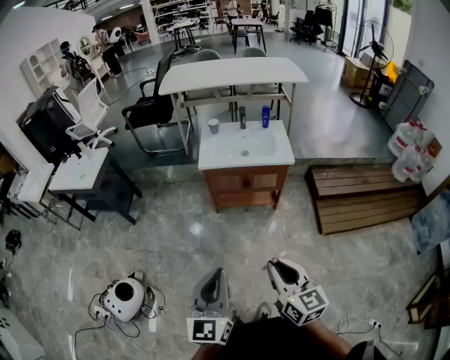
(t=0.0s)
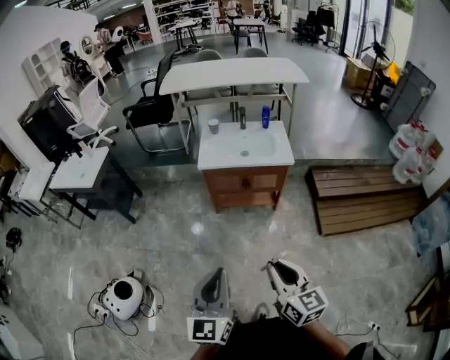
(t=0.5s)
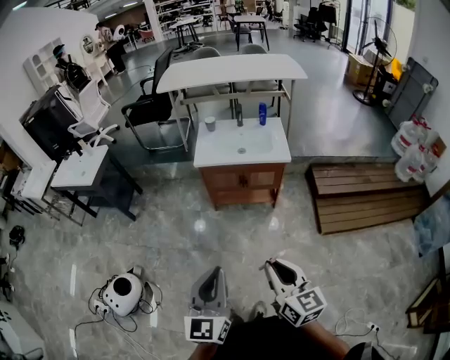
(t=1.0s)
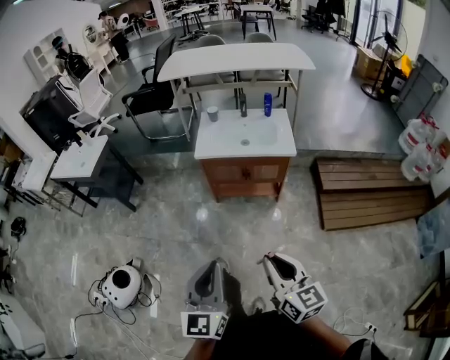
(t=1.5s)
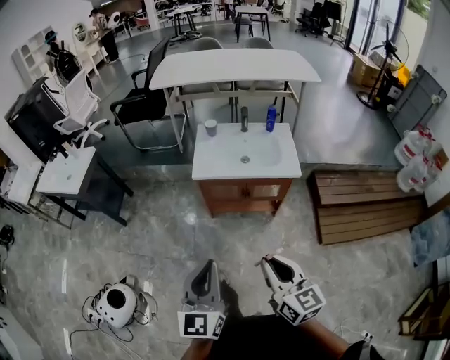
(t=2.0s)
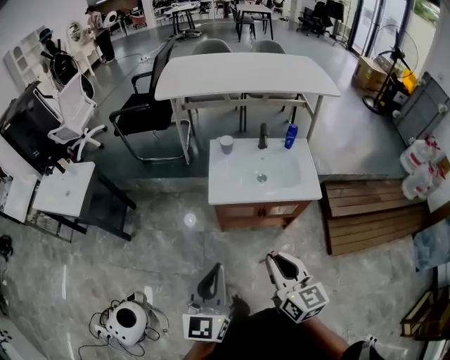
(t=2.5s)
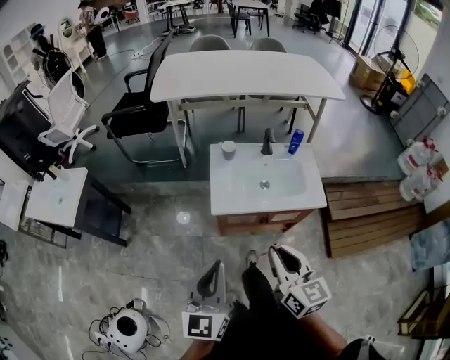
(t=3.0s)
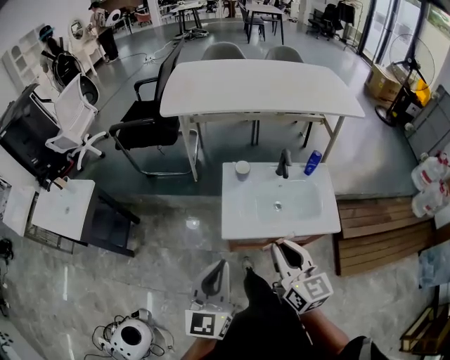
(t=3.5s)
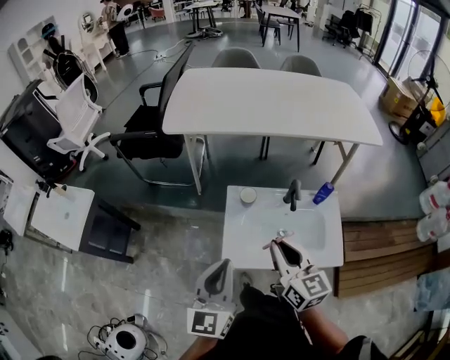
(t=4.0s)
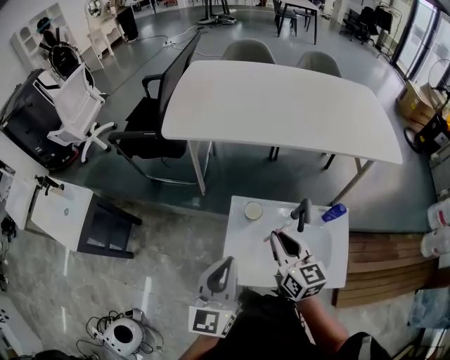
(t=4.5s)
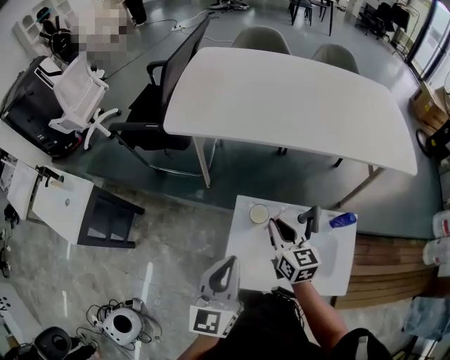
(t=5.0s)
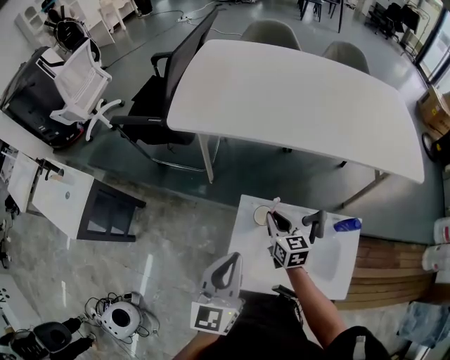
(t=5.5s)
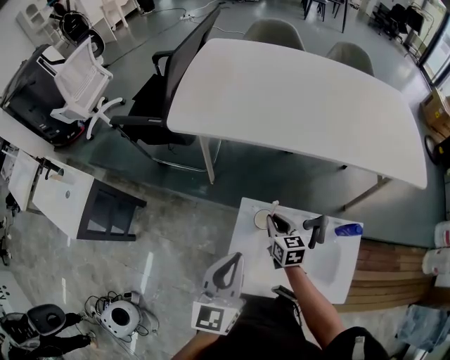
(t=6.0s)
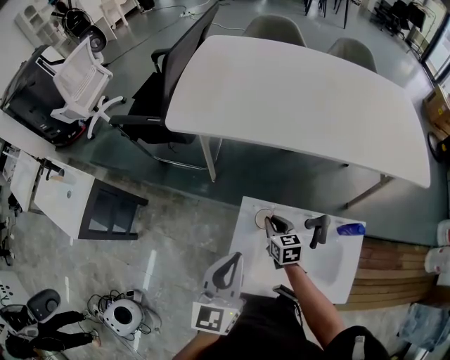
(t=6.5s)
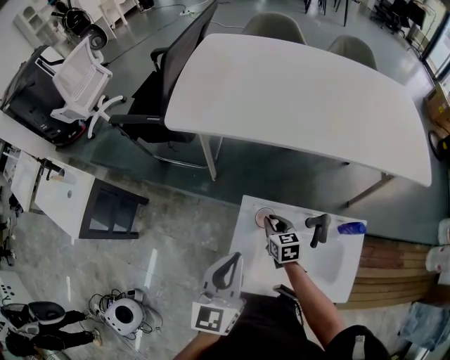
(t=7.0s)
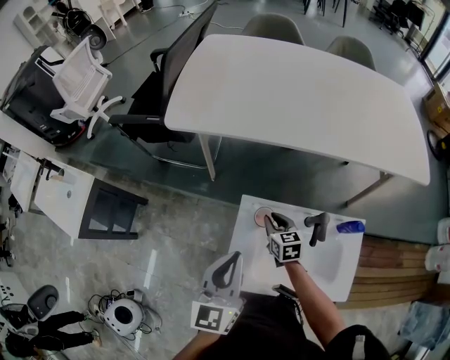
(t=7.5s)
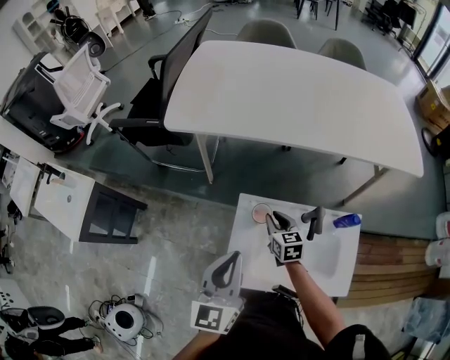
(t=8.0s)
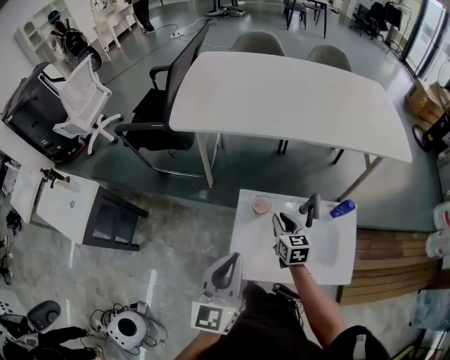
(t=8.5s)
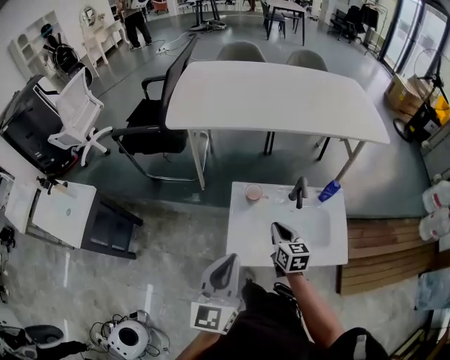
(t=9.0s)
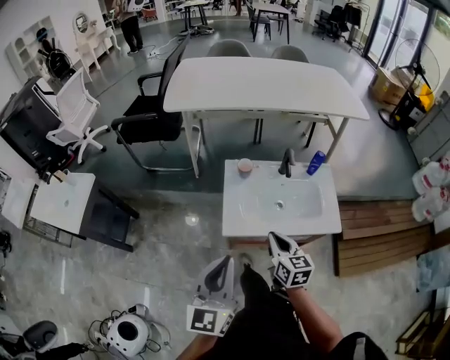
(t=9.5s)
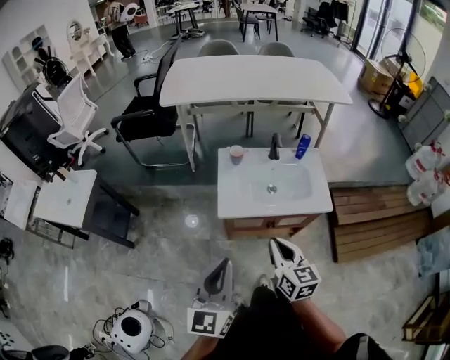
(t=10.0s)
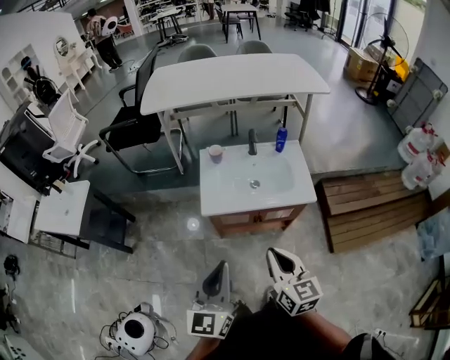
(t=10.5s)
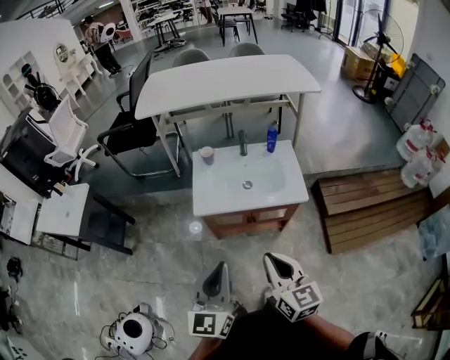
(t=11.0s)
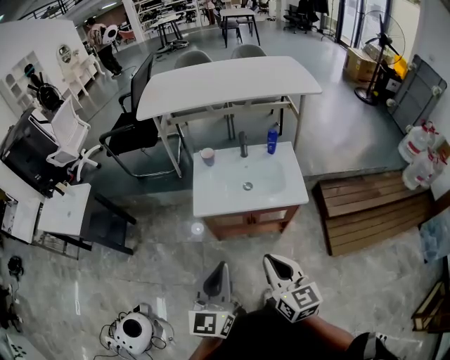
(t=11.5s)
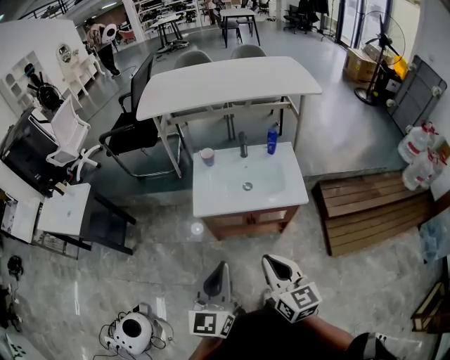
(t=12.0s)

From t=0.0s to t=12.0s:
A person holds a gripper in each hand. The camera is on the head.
From t=0.0s to t=2.0s: The grippers both shift forward by some 20 cm.
From t=2.0s to t=4.0s: The two grippers travel together, forward, about 50 cm.
From t=4.0s to t=6.0s: The left gripper shifts about 20 cm forward, while the right gripper moves forward and downward, about 35 cm, and changes its angle by roughly 20 degrees.
From t=6.0s to t=8.0s: The grippers stay close to where they were, moving slightly.
From t=8.0s to t=10.0s: Both grippers are carried backward, about 50 cm. The right gripper turns by about 20 degrees.
From t=10.0s to t=12.0s: The right gripper shifts approximately 15 cm backward, to the right and upward, while the left gripper travels to the right and backward by approximately 15 cm.

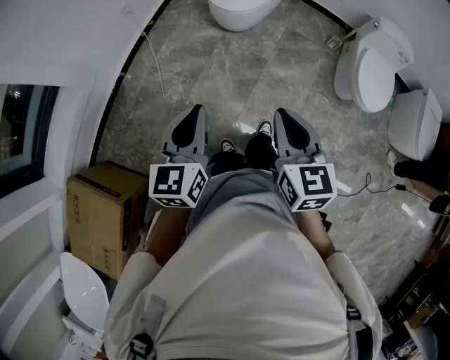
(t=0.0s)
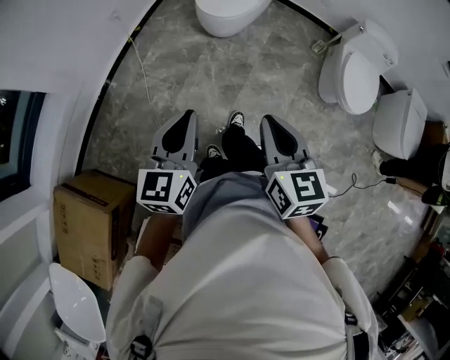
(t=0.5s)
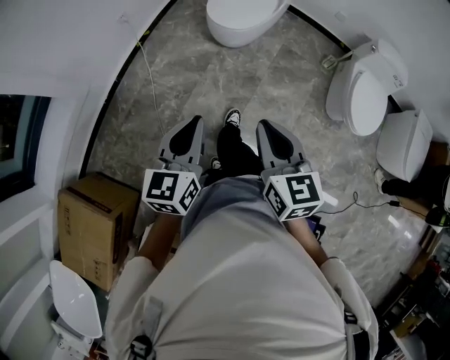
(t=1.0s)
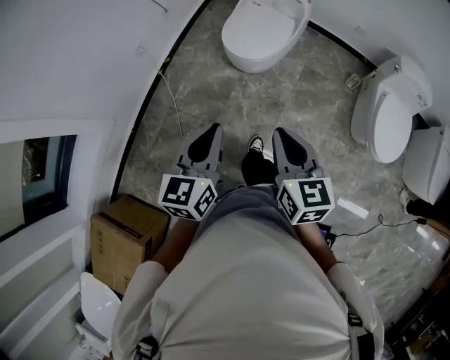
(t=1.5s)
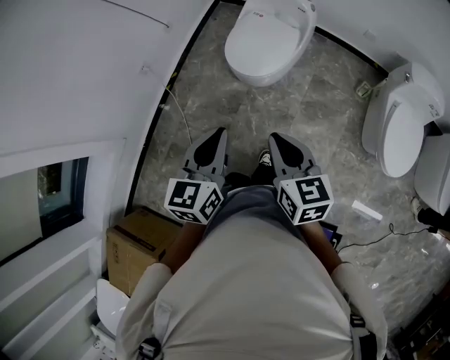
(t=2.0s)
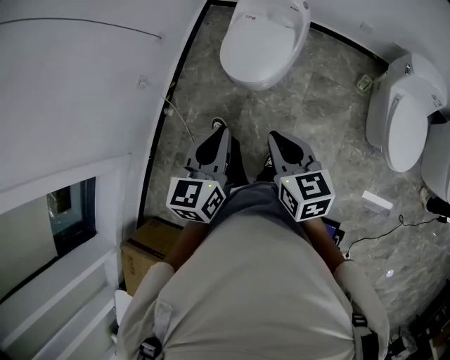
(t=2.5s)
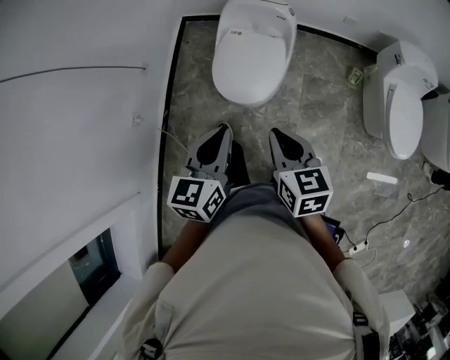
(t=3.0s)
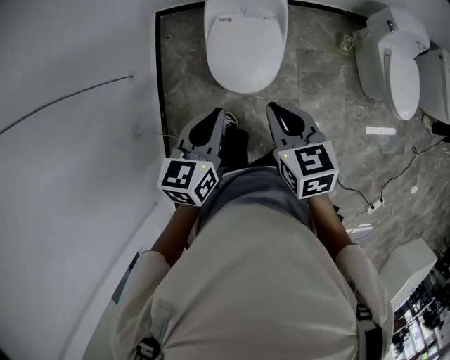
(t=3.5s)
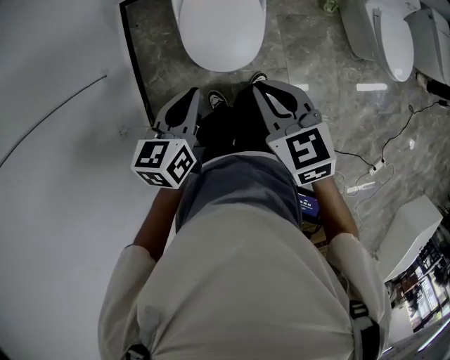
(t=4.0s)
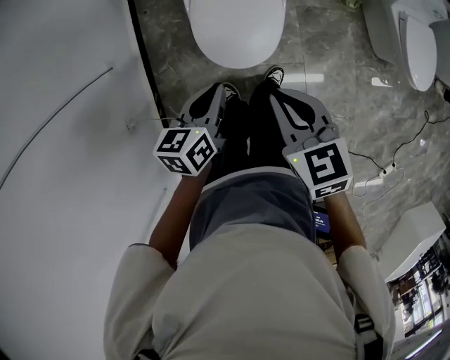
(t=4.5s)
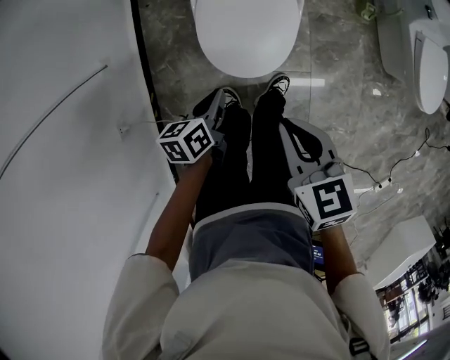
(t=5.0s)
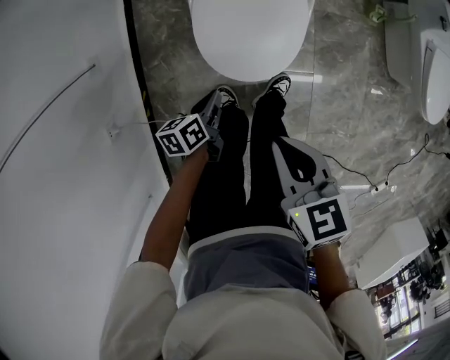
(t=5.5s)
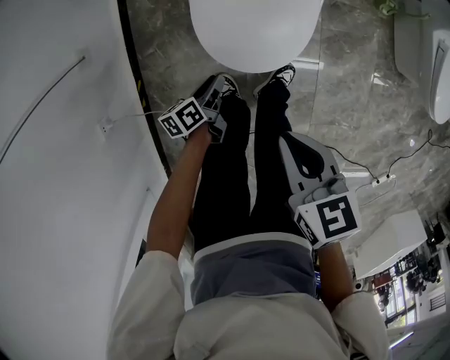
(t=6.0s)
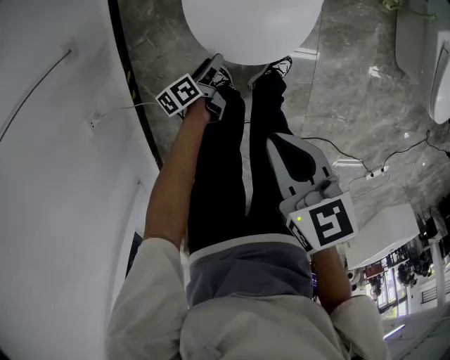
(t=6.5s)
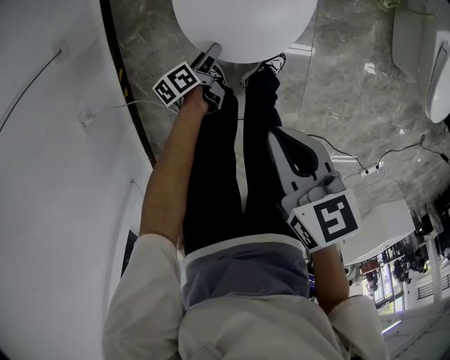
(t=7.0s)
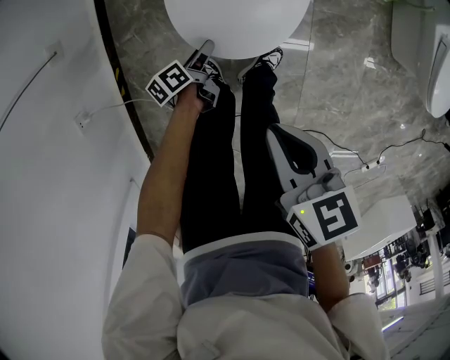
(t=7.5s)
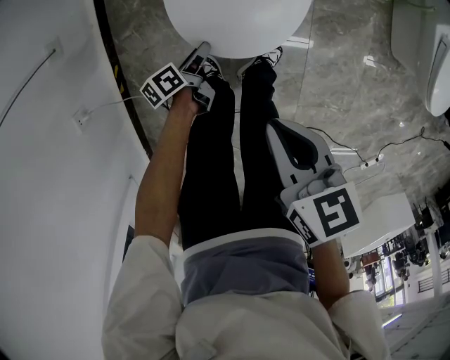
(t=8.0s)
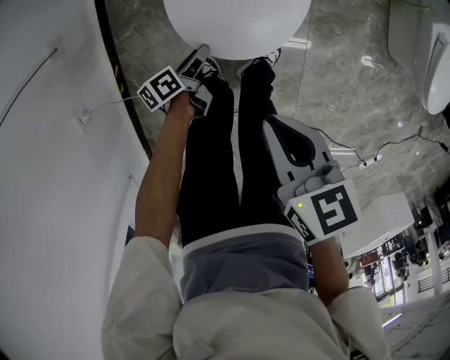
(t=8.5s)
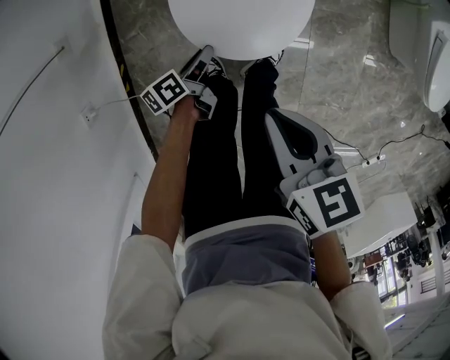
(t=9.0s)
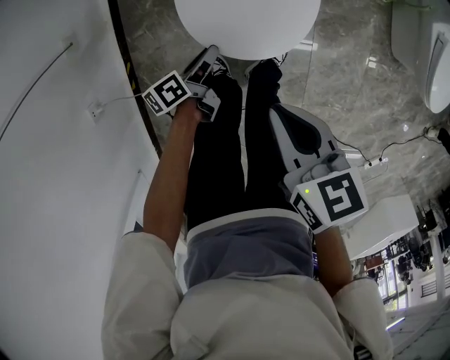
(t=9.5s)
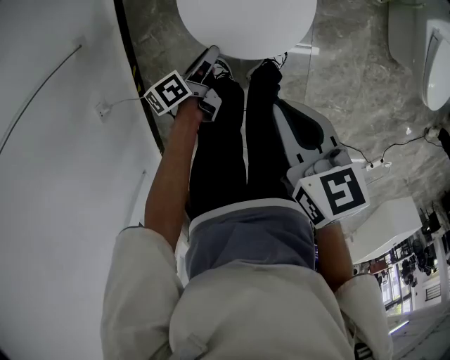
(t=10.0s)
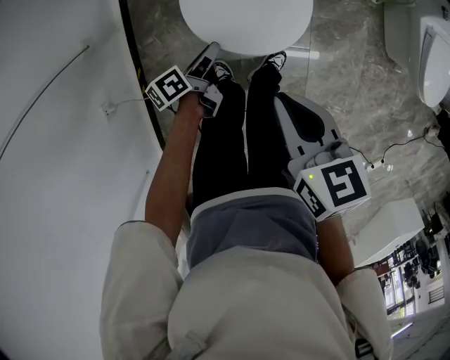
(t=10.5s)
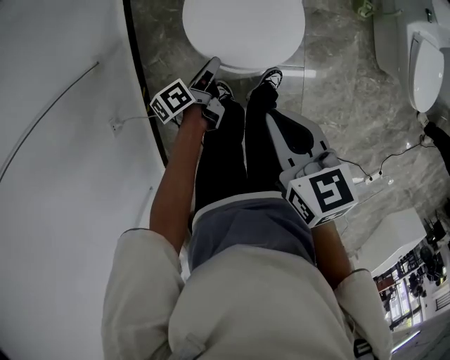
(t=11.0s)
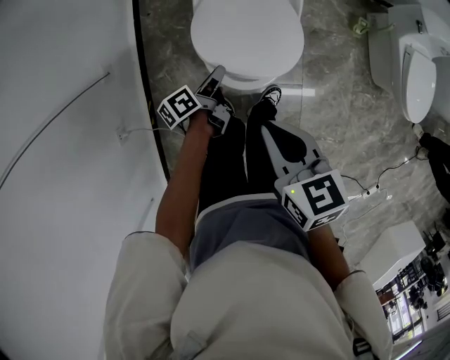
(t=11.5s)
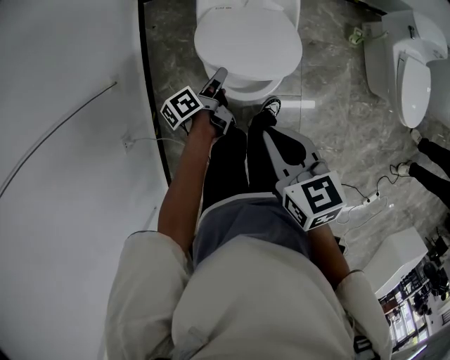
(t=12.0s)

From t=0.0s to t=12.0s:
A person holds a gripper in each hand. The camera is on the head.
From t=0.0s to t=2.0s: Both grippers travel together forward, approximately 35 cm.
From t=2.0s to t=4.0s: The right gripper moves some 35 cm, and changes its angle by some 20 degrees. Meanwhile the left gripper moves roughly 40 cm, and turns by about 40 degrees.
From t=4.0s to t=6.0s: The left gripper goes some 40 cm downward, rolls counterclockwise, seen from behind, by approximately 40 degrees, and opens its fingers, while the right gripper moves downward, some 20 cm, and rotates approximately 20 degrees.
From t=6.0s to t=8.0s: The left gripper heads downward, covering some 5 cm.
From t=8.0s to t=10.0s: The left gripper goes approximately 15 cm upward; the right gripper travels upward by roughly 5 cm.
From t=10.0s to t=12.0s: The left gripper goes some 15 cm upward and forward; the right gripper heads upward, covering about 10 cm.

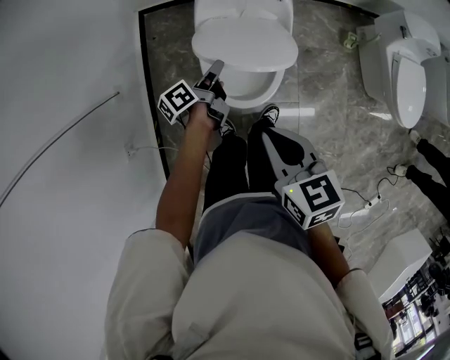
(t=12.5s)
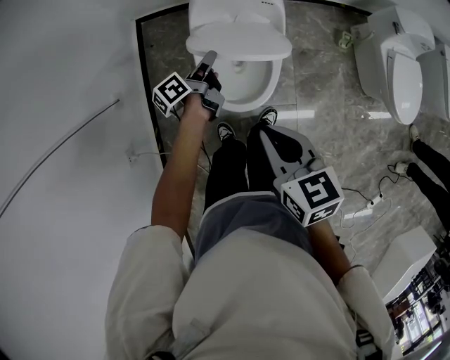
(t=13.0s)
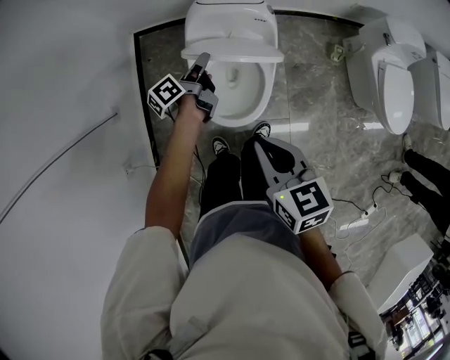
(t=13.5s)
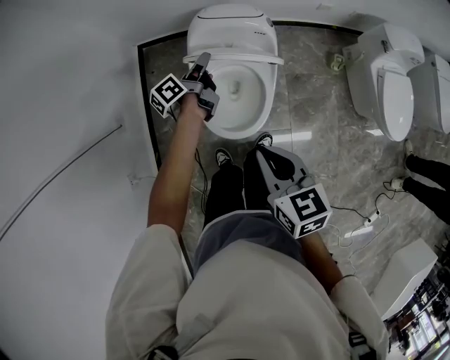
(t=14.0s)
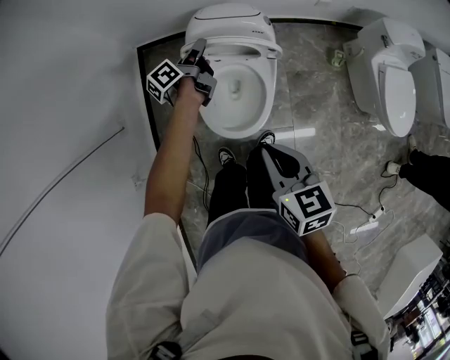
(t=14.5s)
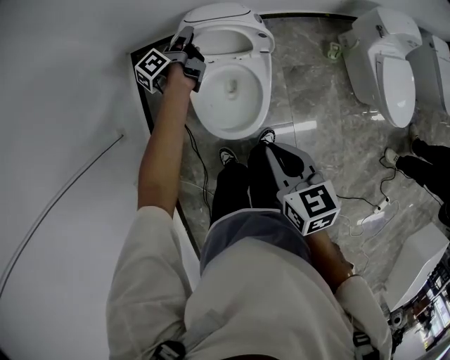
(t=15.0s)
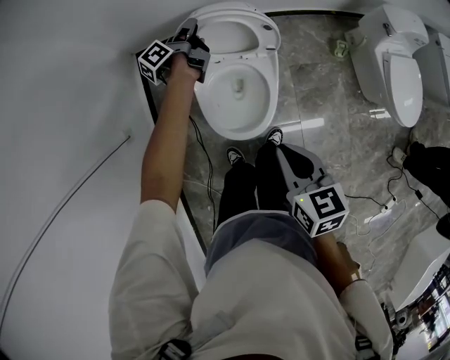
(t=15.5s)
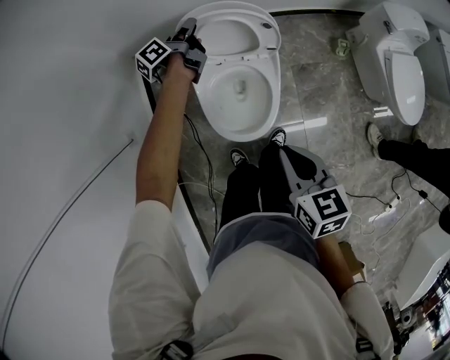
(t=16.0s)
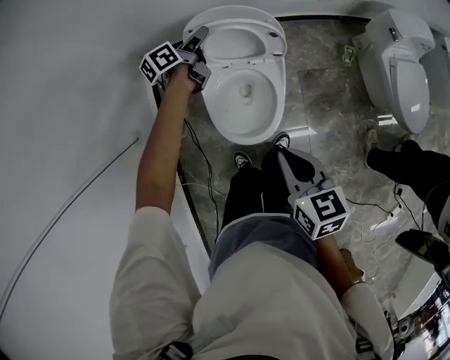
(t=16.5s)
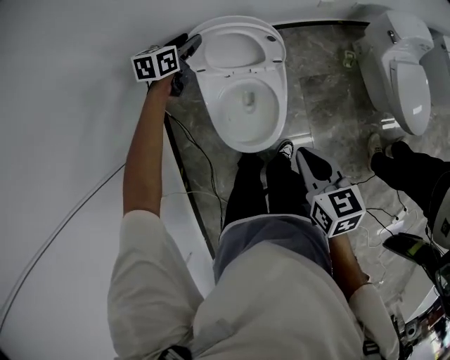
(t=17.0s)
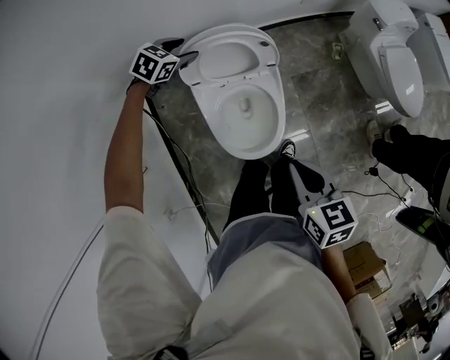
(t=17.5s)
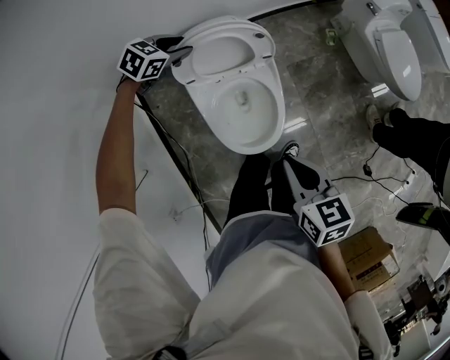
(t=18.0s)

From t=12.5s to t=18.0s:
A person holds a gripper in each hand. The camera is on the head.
From t=12.5s to t=14.5s: The right gripper moves to the right, about 5 cm. The left gripper is displaced forward and upward by about 20 cm.
From t=14.5s to t=16.0s: The left gripper moves forward, some 10 cm.
From t=16.0s to t=18.0s: The left gripper twists some 90 degrees clockwise, seen from behind.
